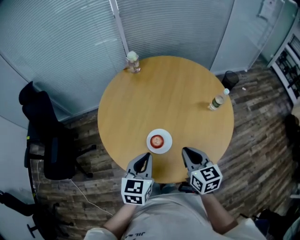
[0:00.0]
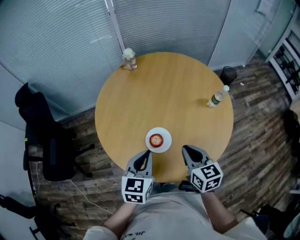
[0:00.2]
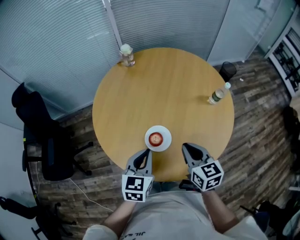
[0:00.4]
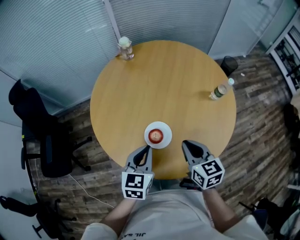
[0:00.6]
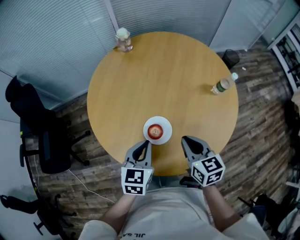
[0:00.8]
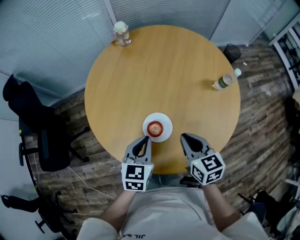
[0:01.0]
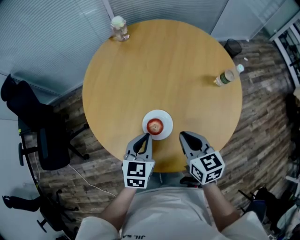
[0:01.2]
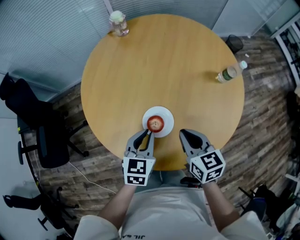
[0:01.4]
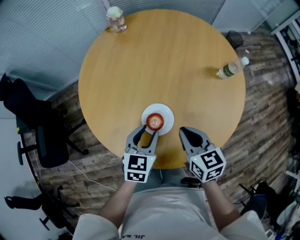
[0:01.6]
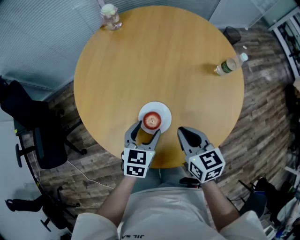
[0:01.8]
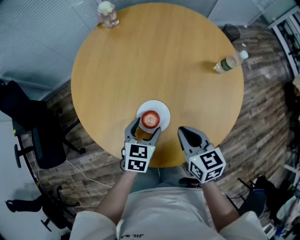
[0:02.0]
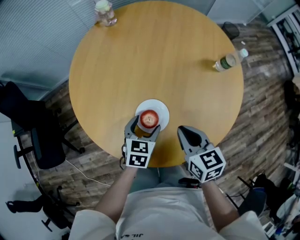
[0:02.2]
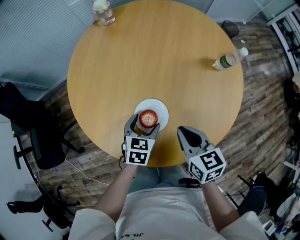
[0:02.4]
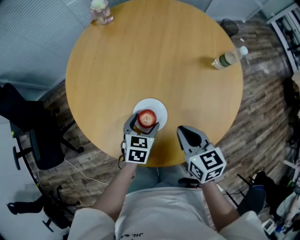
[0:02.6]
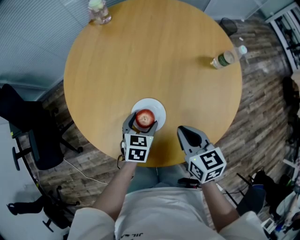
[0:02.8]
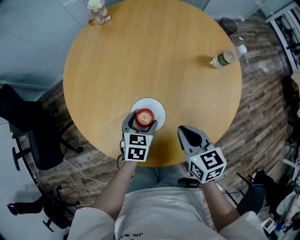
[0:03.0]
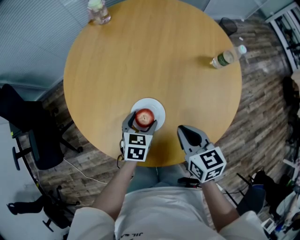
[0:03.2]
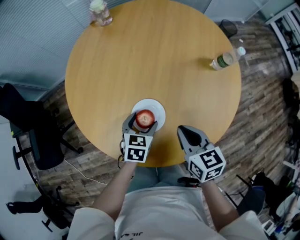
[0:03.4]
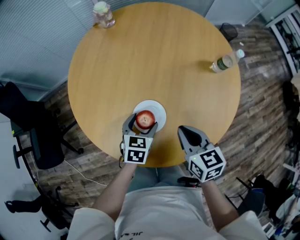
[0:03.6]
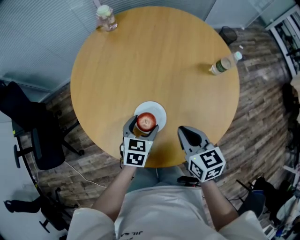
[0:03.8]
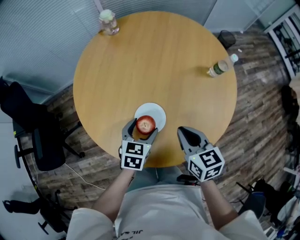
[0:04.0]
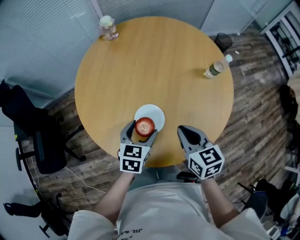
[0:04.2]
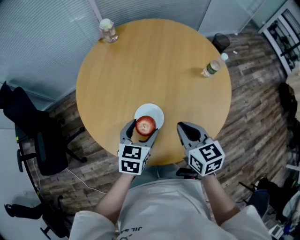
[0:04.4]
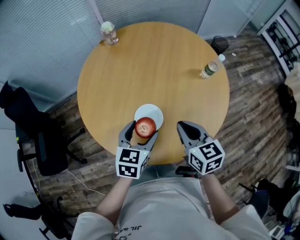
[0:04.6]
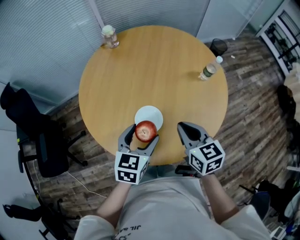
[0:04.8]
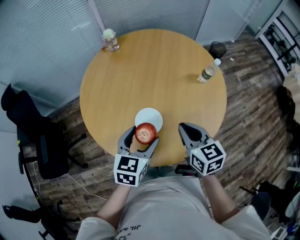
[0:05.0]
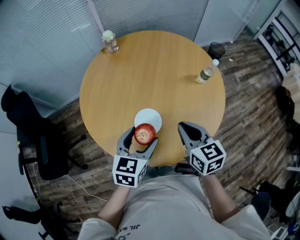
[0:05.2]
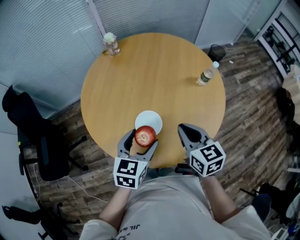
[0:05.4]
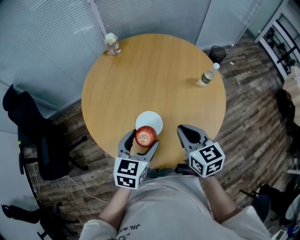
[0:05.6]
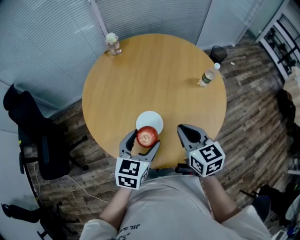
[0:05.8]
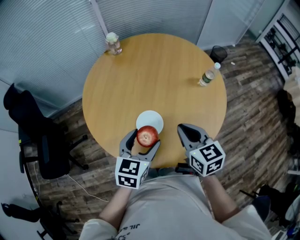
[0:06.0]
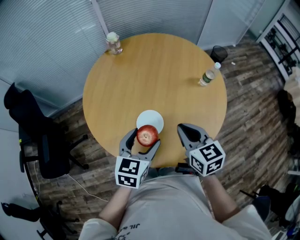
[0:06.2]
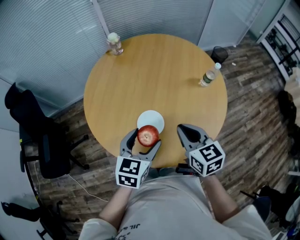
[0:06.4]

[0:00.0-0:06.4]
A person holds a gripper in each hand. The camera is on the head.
0.0 to 1.6 s: The right gripper goes approximately 5 cm downward. Meanwhile the left gripper heads downward and forward, covering some 15 cm, and opens.
1.6 to 3.2 s: The left gripper shifts about 10 cm downward, and opens up.
3.2 to 4.8 s: The left gripper is displaced upward by about 20 cm, while the right gripper is displaced upward by approximately 10 cm.
4.8 to 6.4 s: There are only small adjustments of the grippers.

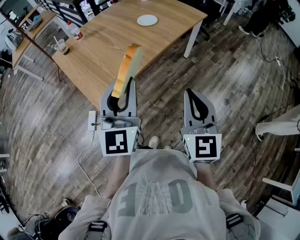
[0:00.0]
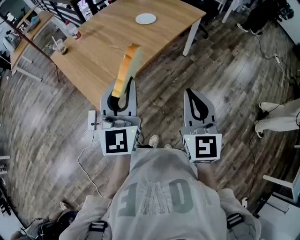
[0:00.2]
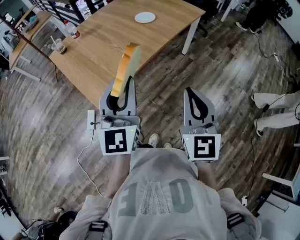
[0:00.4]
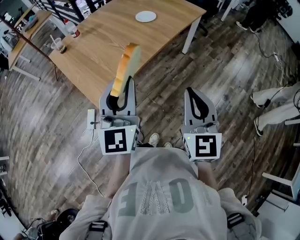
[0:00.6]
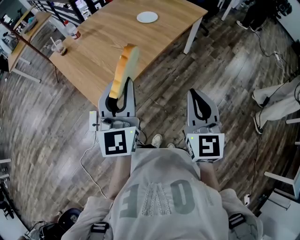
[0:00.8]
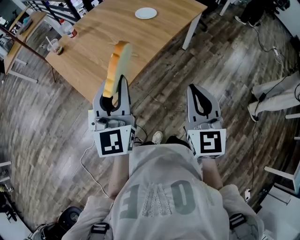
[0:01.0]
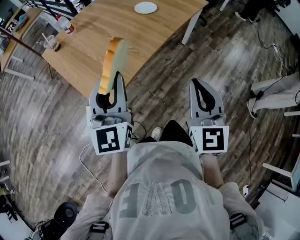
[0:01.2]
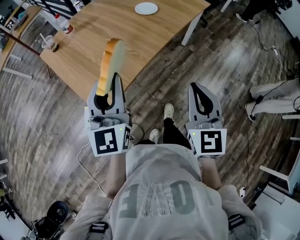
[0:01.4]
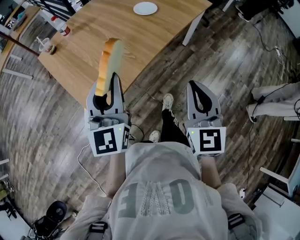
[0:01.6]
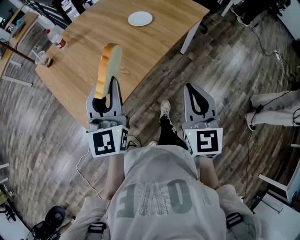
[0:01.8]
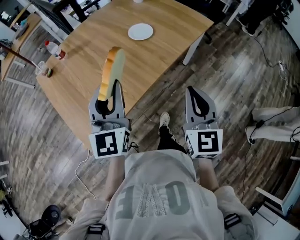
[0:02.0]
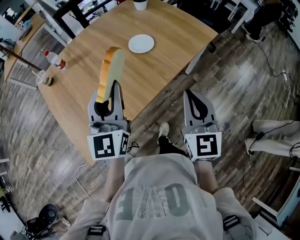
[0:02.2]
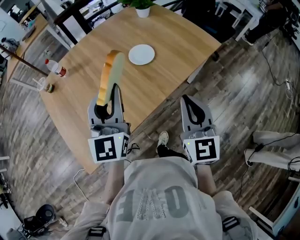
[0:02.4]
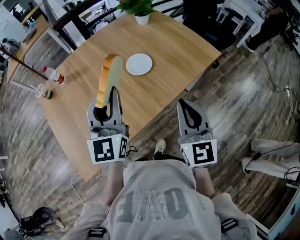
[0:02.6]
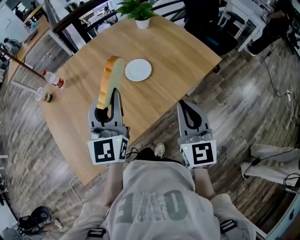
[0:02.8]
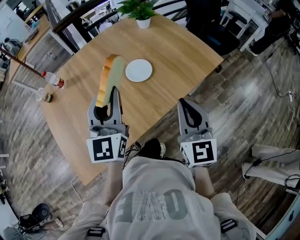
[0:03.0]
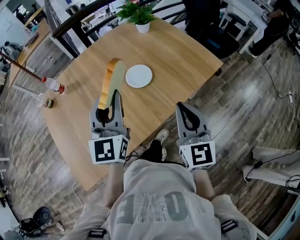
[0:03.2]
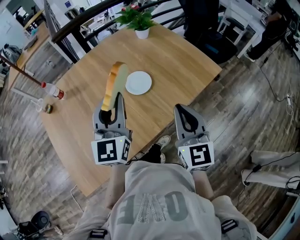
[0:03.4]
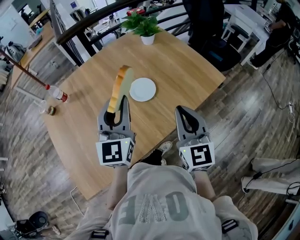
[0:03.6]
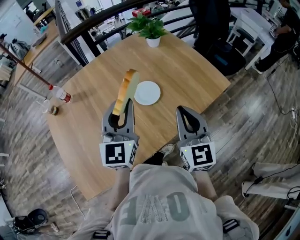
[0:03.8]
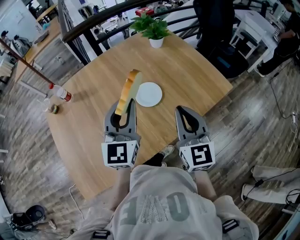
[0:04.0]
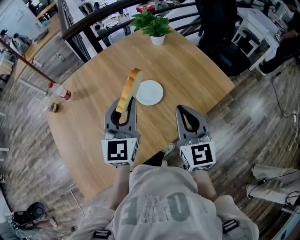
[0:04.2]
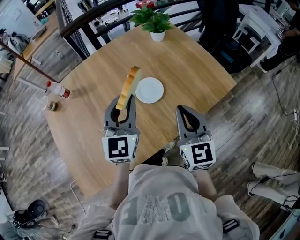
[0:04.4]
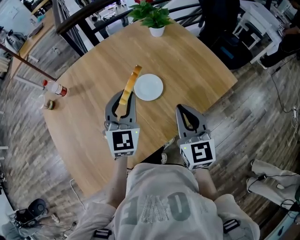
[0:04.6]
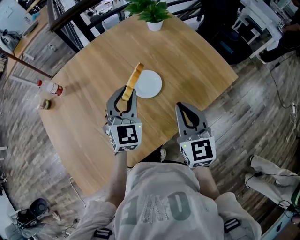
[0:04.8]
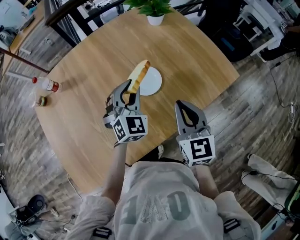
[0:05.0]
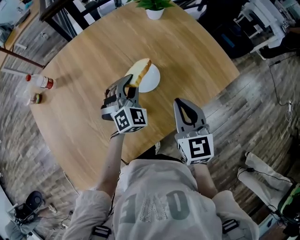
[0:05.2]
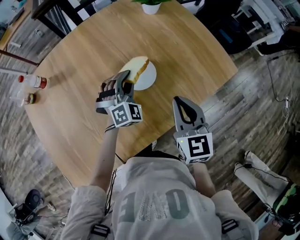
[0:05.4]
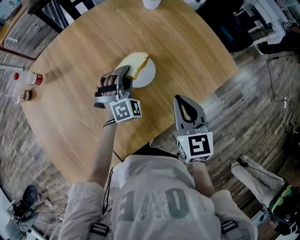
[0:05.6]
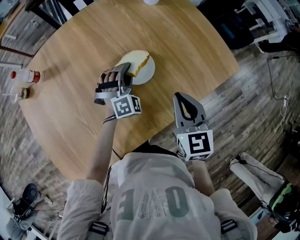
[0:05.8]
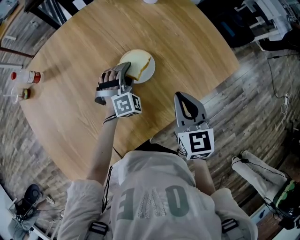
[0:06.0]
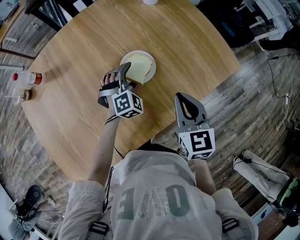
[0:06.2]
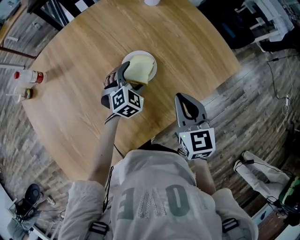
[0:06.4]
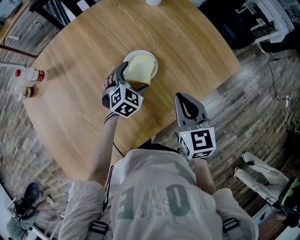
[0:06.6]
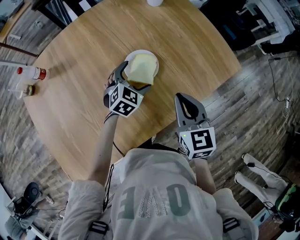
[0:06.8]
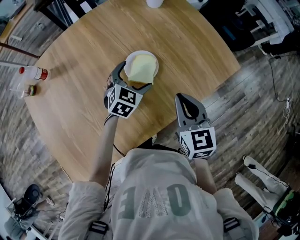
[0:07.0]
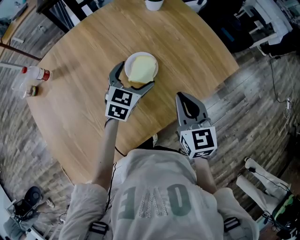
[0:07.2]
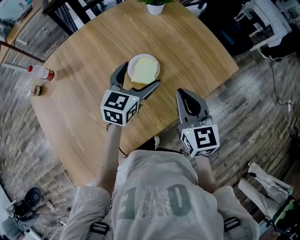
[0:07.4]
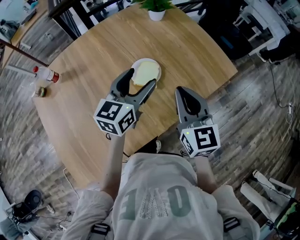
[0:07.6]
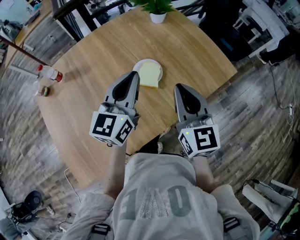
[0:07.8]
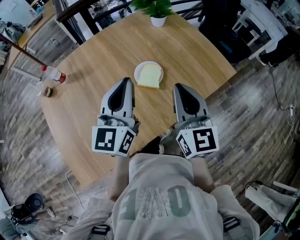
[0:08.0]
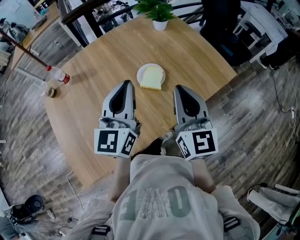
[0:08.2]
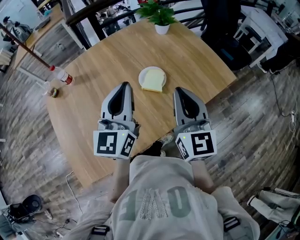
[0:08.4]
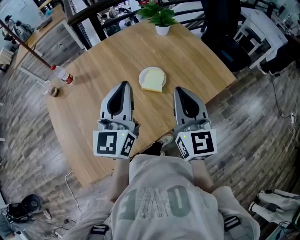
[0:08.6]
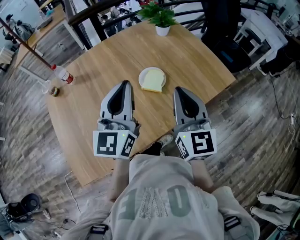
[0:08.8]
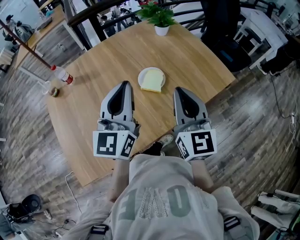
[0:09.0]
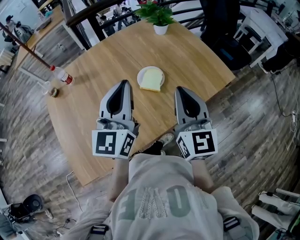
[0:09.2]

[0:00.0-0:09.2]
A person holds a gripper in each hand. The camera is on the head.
0.0 to 1.6 s: The right gripper travels forward by about 10 cm; the left gripper goes roughly 10 cm forward and to the left.
1.6 to 3.0 s: The grippers both shift forward and to the right by about 35 cm.
3.0 to 4.6 s: The right gripper travels forward by about 10 cm; the left gripper goes some 15 cm forward and downward, and rotates about 20 degrees.
4.6 to 6.2 s: The left gripper goes some 20 cm downward, tips its fingers downward by some 30 degrees, and opens its fingers. The right gripper heads downward, covering approximately 10 cm.
6.2 to 7.6 s: The right gripper is displaced upward by roughly 10 cm. Meanwhile the left gripper moves upward, some 20 cm, and rotates around the line of its fingers by roughly 60 degrees, counterclockwise from behind.
7.6 to 9.2 s: The left gripper heads upward, backward and to the left, covering approximately 15 cm, turns by approximately 30 degrees, and closes, while the right gripper travels upward by about 5 cm.

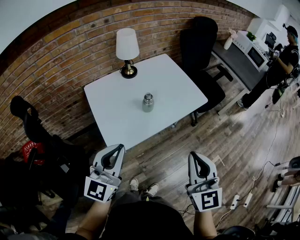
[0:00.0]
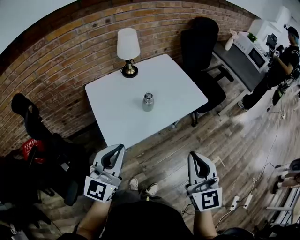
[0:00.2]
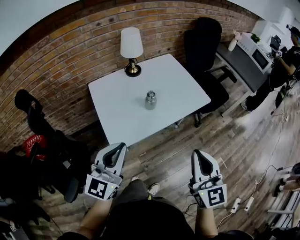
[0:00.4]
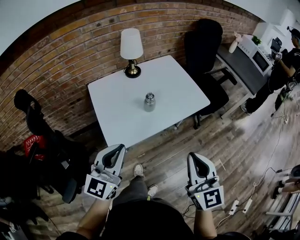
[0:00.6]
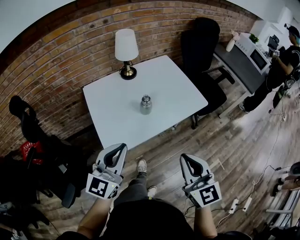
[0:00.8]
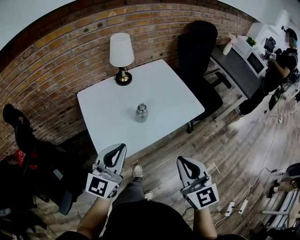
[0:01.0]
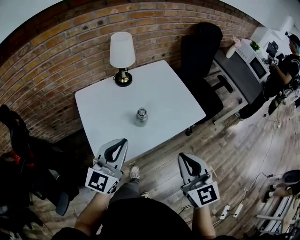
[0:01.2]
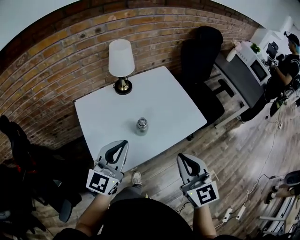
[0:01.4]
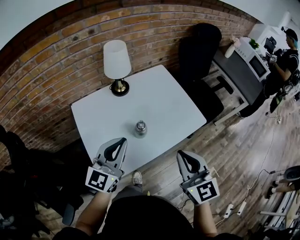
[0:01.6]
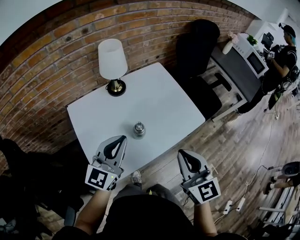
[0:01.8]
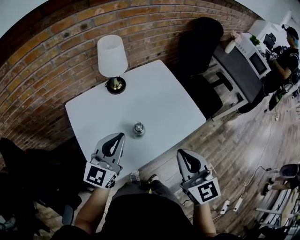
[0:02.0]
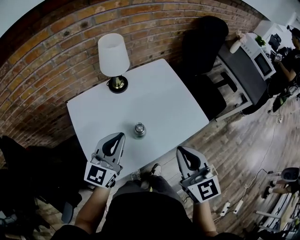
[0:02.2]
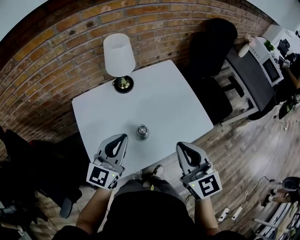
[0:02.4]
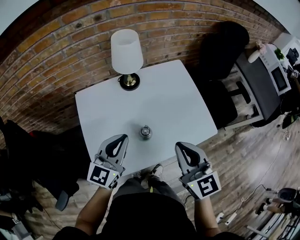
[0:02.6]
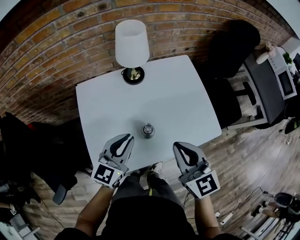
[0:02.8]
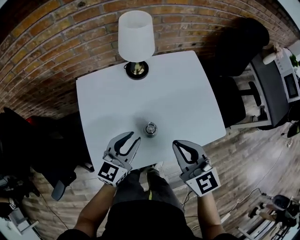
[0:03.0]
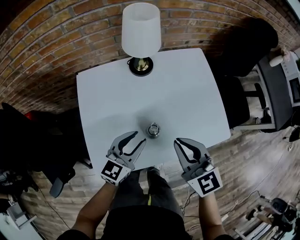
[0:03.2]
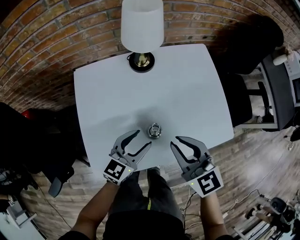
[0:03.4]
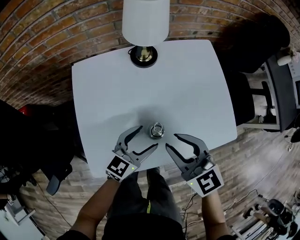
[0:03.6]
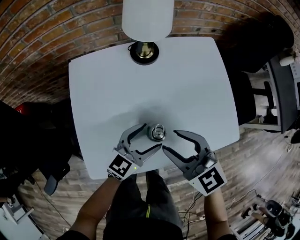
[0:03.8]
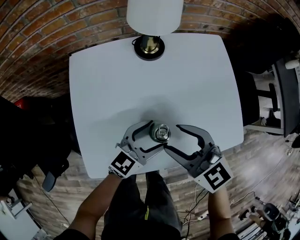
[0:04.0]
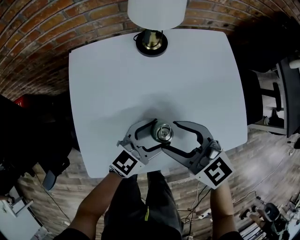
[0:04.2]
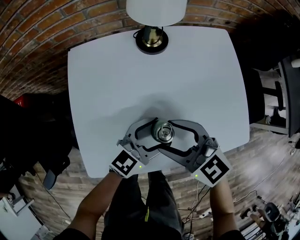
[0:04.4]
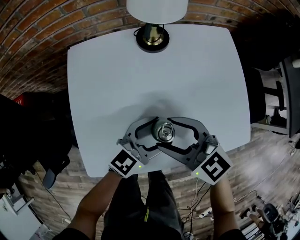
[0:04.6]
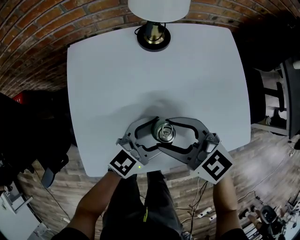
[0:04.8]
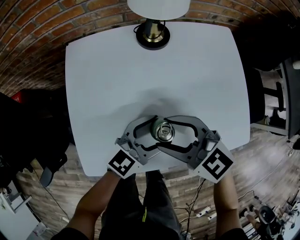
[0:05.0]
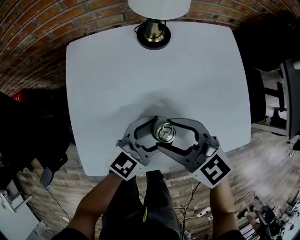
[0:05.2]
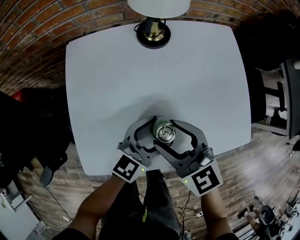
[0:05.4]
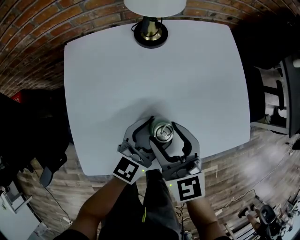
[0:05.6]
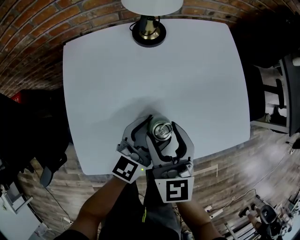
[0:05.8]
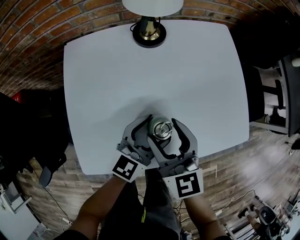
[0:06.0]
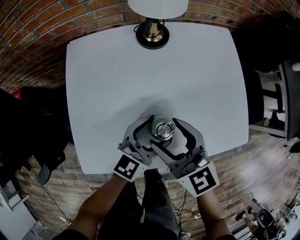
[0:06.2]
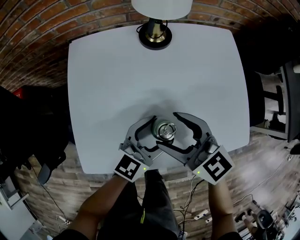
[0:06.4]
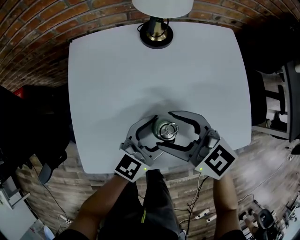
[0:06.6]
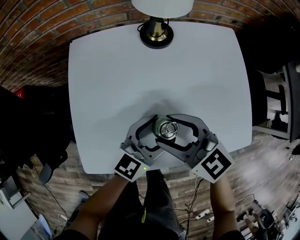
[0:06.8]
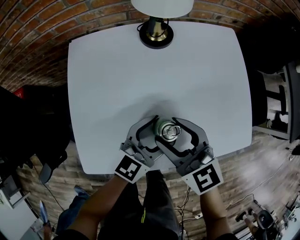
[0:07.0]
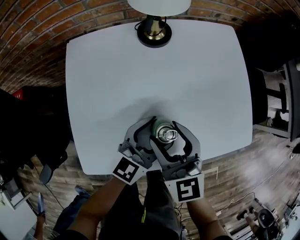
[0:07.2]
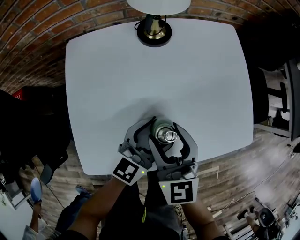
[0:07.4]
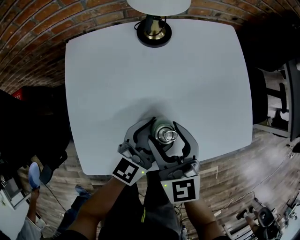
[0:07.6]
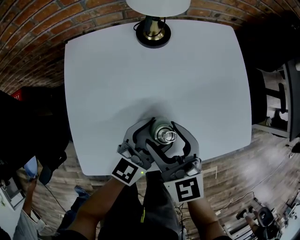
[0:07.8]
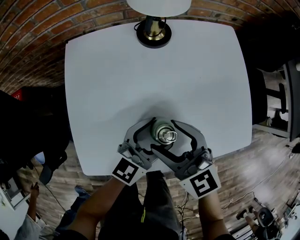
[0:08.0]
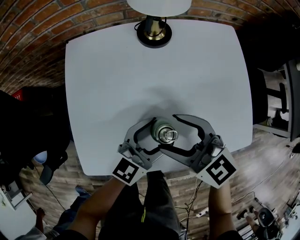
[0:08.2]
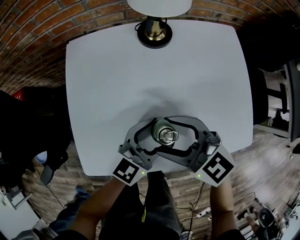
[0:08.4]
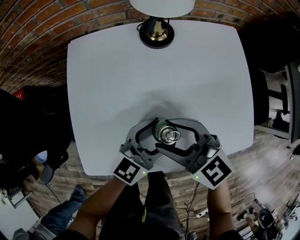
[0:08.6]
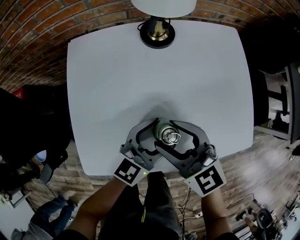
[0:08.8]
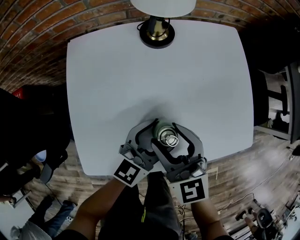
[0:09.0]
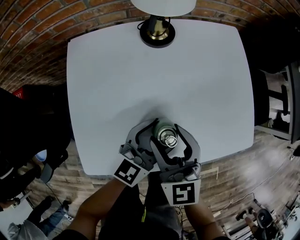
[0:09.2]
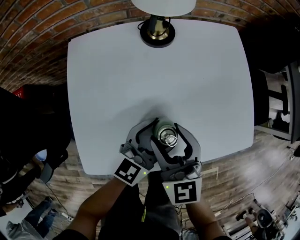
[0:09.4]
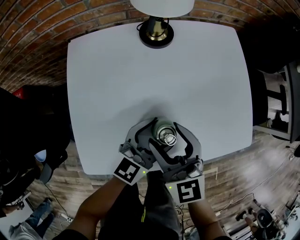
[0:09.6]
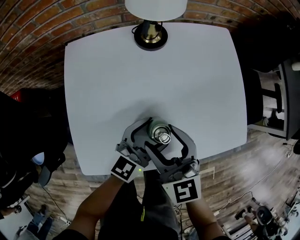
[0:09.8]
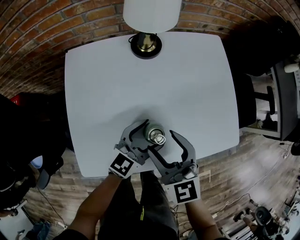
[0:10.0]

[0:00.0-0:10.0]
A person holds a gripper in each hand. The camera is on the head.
0.0 to 1.4 s: The two grippers go some 15 cm forward.
1.4 to 2.8 s: The left gripper is displaced forward and downward by about 15 cm; the right gripper is displaced forward by about 15 cm.
2.8 to 4.2 s: The left gripper moves downward and to the right, about 15 cm, and opens up. Meanwhile the right gripper shifts approximately 15 cm downward, to the left and forward, changes its angle by approximately 40 degrees, and opens its fingers.
4.2 to 5.8 s: The right gripper turns by some 40 degrees.
7.2 to 8.6 s: The right gripper changes its angle by approximately 40 degrees.
8.6 to 10.0 s: The right gripper rotates some 30 degrees.
